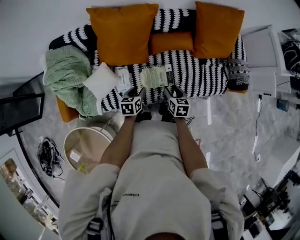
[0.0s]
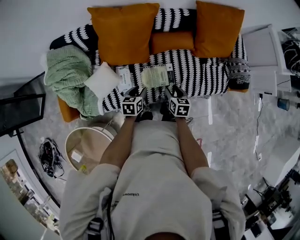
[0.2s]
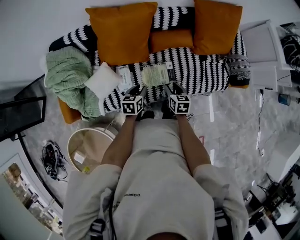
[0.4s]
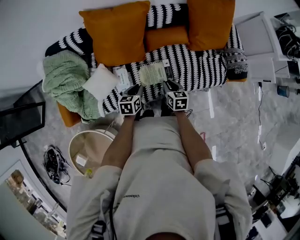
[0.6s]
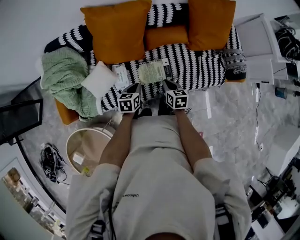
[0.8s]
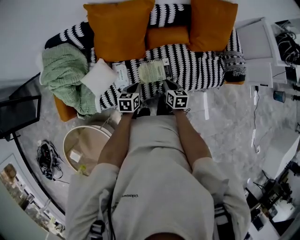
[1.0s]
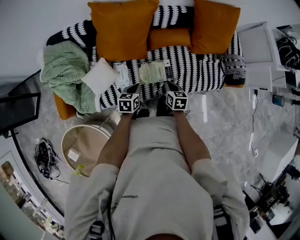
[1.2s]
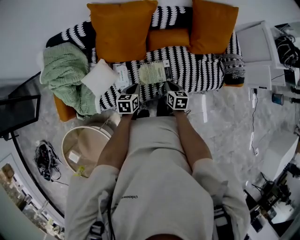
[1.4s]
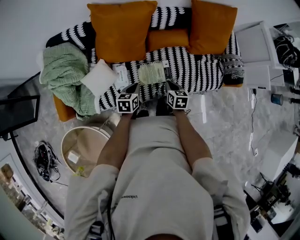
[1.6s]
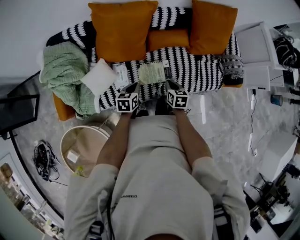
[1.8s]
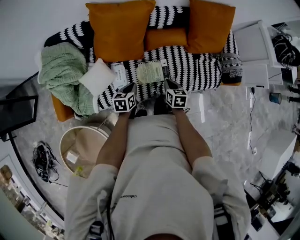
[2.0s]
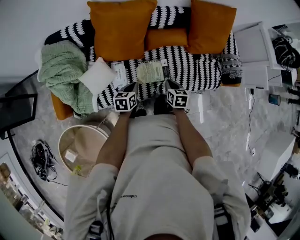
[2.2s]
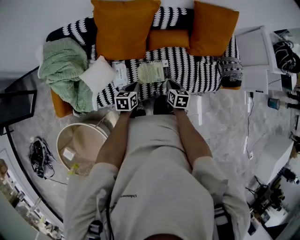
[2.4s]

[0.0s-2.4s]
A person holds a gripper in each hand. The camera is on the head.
0.0s to 1.2s: The left gripper closes. Meanwhile the right gripper closes.
1.2s to 2.4s: The grippers move only a little.

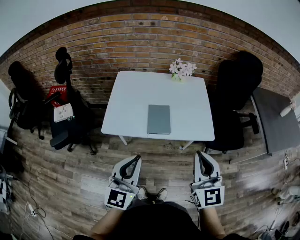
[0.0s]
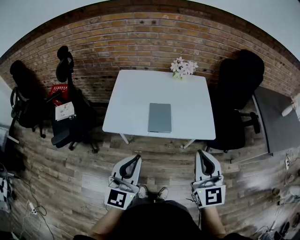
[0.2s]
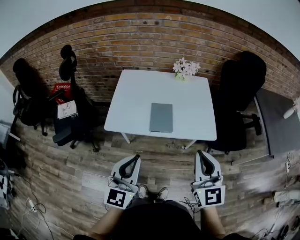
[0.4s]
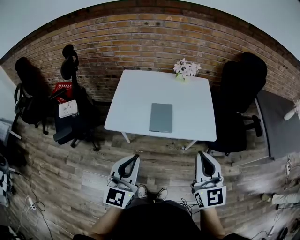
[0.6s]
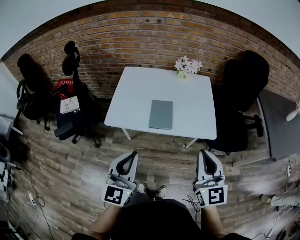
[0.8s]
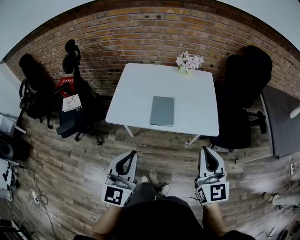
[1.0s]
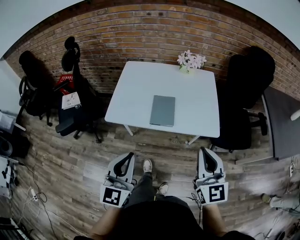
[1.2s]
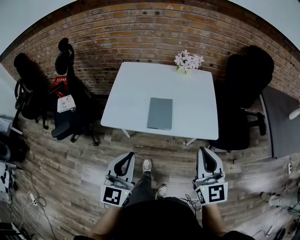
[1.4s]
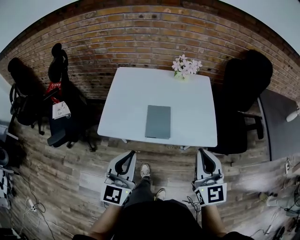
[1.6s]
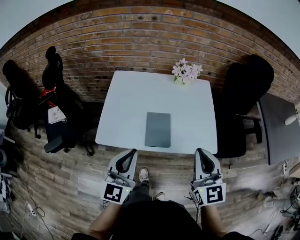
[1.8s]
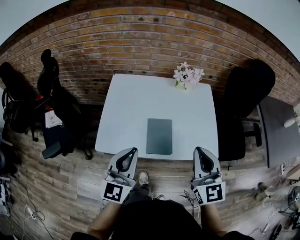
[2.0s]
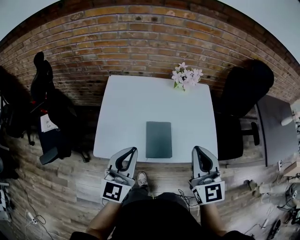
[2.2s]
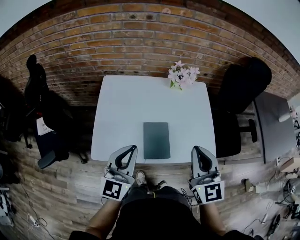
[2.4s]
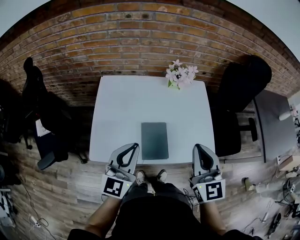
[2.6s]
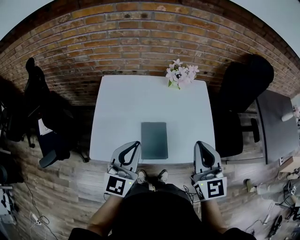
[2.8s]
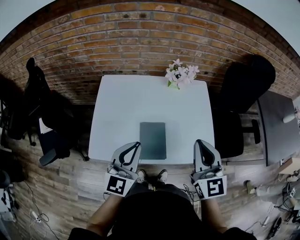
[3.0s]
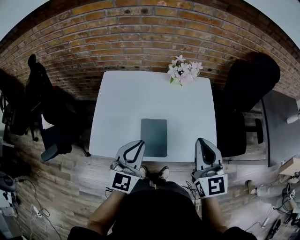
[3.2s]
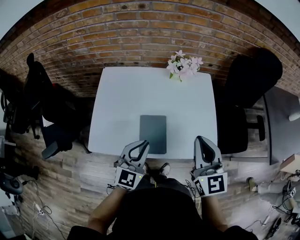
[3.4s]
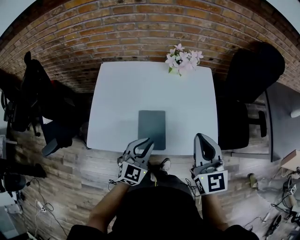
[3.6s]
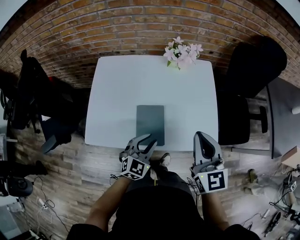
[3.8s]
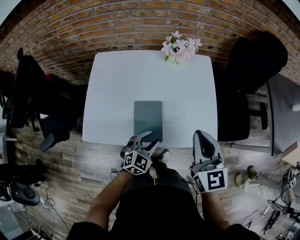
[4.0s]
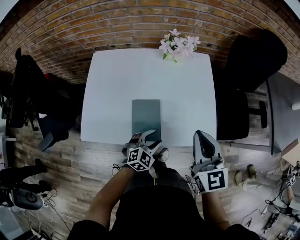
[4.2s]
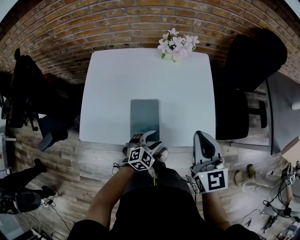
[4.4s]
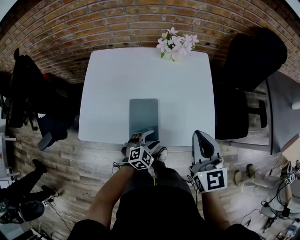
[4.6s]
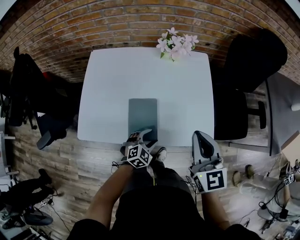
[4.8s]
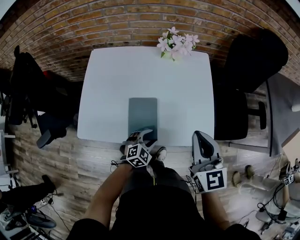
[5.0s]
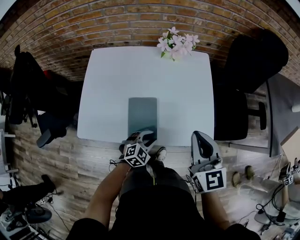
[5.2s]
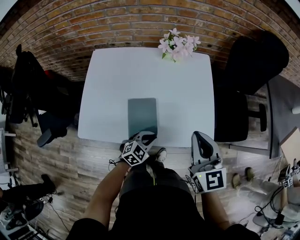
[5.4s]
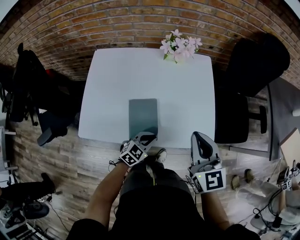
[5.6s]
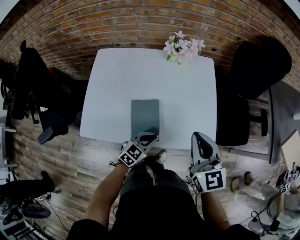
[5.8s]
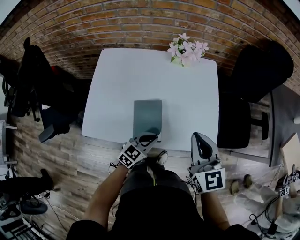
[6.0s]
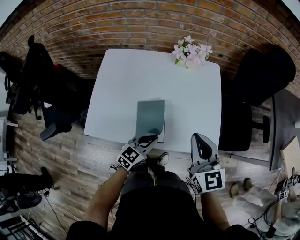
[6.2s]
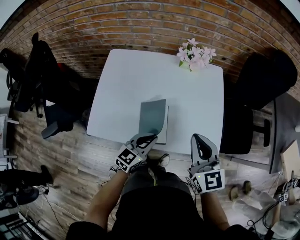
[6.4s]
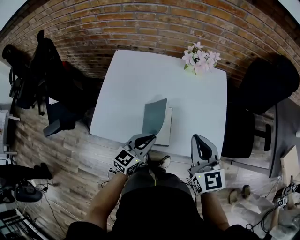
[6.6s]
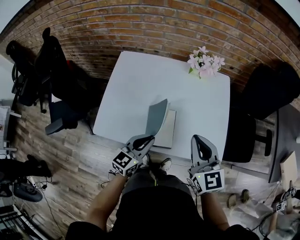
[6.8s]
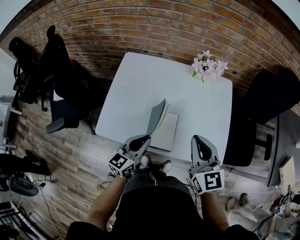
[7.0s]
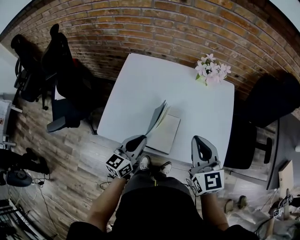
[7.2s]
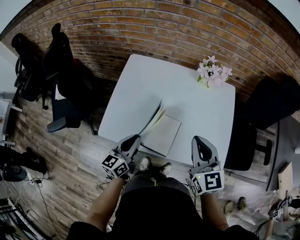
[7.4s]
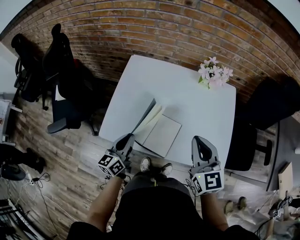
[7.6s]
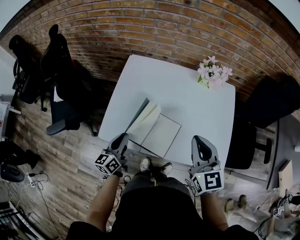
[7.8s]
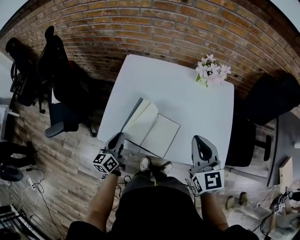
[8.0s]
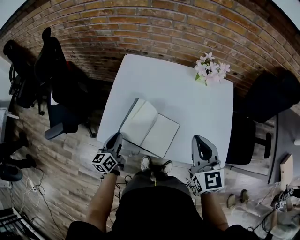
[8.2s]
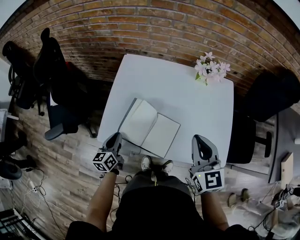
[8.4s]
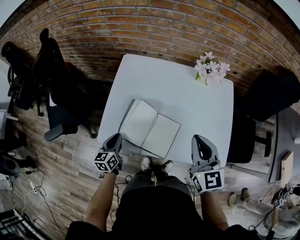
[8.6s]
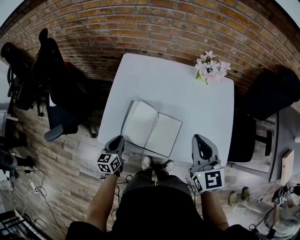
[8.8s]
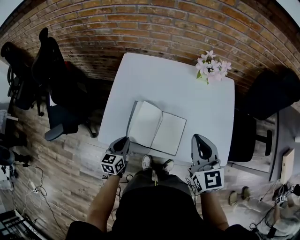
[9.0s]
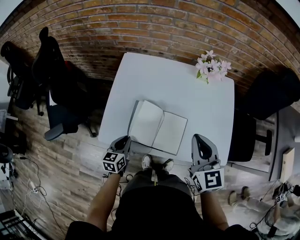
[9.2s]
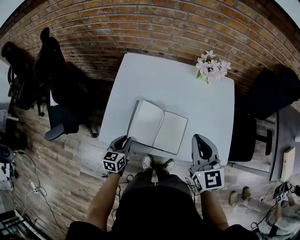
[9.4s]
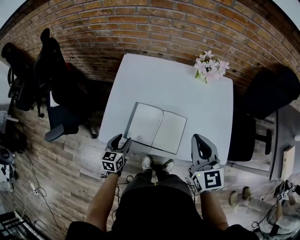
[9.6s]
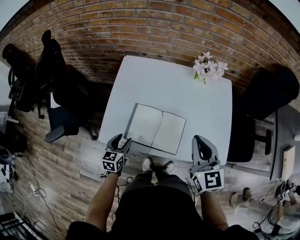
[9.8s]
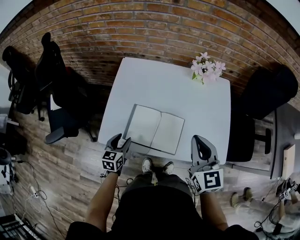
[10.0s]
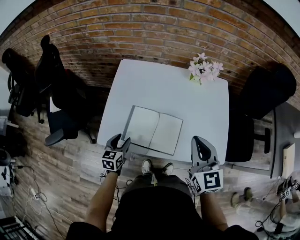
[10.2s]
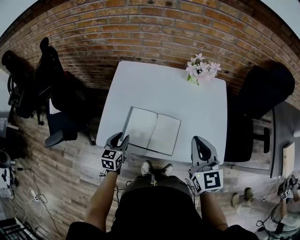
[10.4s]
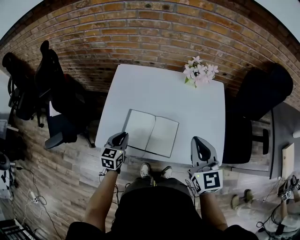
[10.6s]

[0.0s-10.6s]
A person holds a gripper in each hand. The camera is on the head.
0.0s to 1.6s: Both grippers travel together forward, some 5 cm.
1.6s to 3.0s: Both grippers travel together forward, some 20 cm.
3.0s to 4.6s: The right gripper goes approximately 10 cm downward and to the right, while the left gripper heads downward and to the right, covering some 35 cm, tips its fingers downward by roughly 40 degrees, and opens.
4.6s to 6.0s: The left gripper goes some 5 cm upward, turns by some 30 degrees, and closes.
6.0s to 7.6s: The left gripper travels to the left by some 25 cm, and changes its angle by some 50 degrees; the right gripper moves to the left, about 10 cm.
7.6s to 9.0s: The left gripper travels downward by approximately 10 cm, and rotates approximately 20 degrees.
9.0s to 10.6s: The left gripper is displaced upward by about 5 cm, and opens, then closes again; the right gripper changes place by about 5 cm.

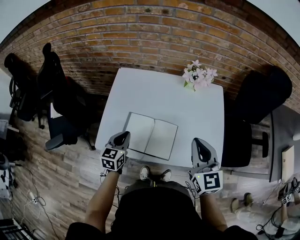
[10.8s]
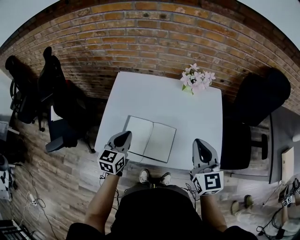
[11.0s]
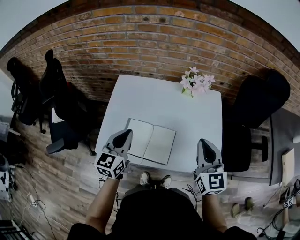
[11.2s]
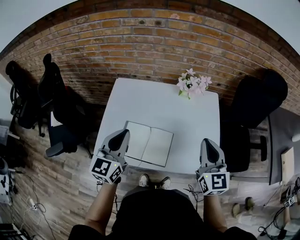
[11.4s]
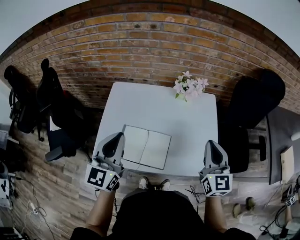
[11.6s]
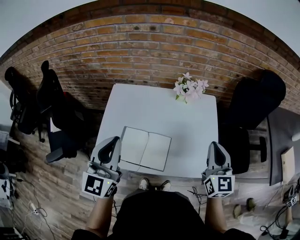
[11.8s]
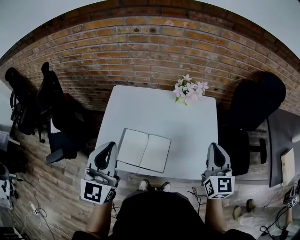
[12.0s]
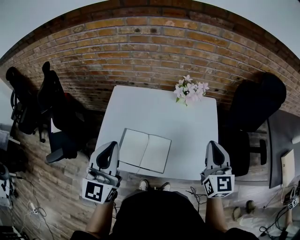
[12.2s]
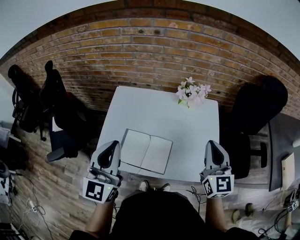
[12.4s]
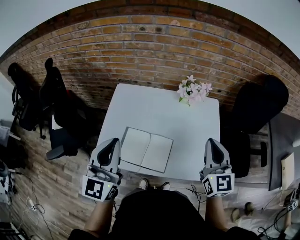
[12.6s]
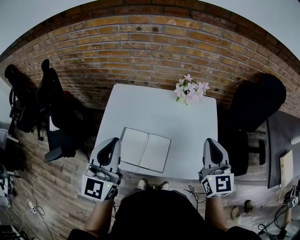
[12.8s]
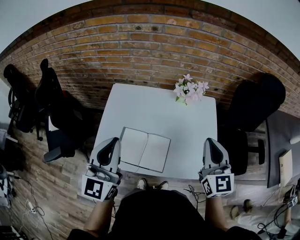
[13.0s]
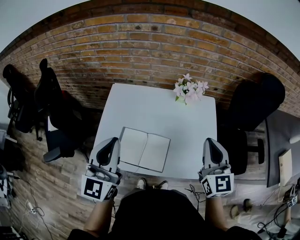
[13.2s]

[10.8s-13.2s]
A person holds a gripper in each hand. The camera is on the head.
10.8s to 12.0s: The left gripper travels upward by roughly 25 cm, and tilts its fingers roughly 30 degrees upward, while the right gripper moves to the right, some 10 cm.
12.0s to 13.2s: The right gripper shifts by about 5 cm.

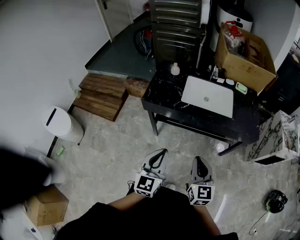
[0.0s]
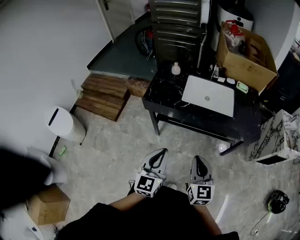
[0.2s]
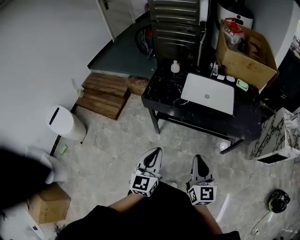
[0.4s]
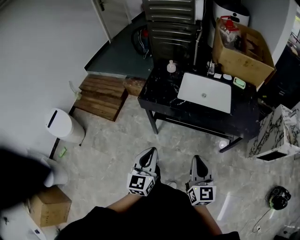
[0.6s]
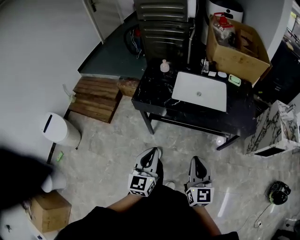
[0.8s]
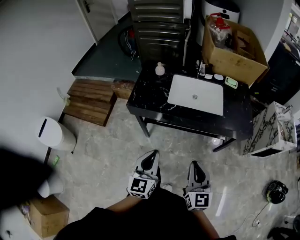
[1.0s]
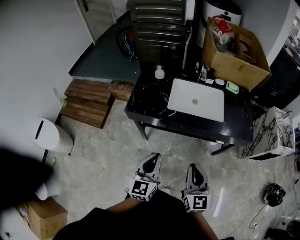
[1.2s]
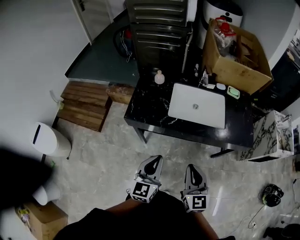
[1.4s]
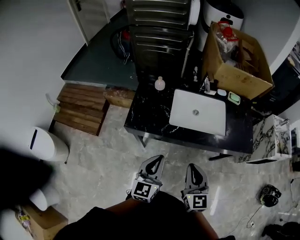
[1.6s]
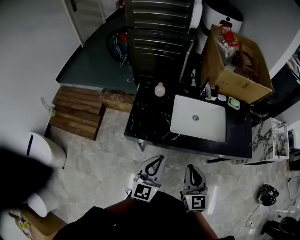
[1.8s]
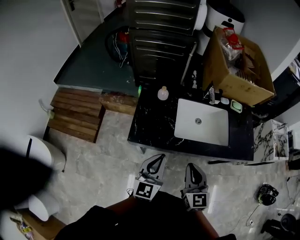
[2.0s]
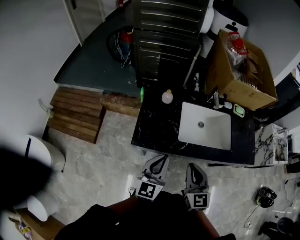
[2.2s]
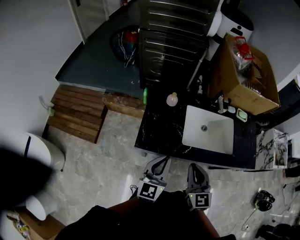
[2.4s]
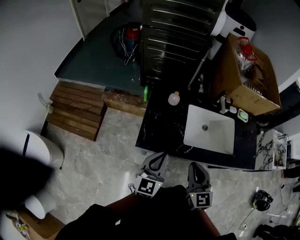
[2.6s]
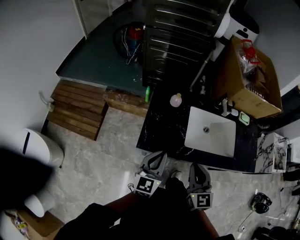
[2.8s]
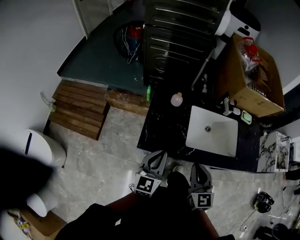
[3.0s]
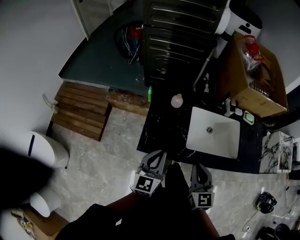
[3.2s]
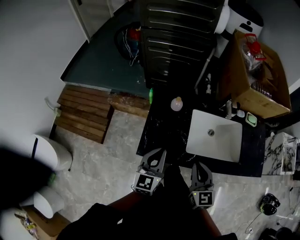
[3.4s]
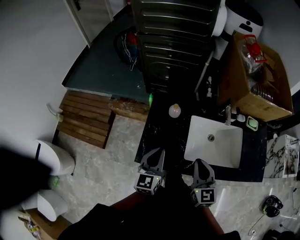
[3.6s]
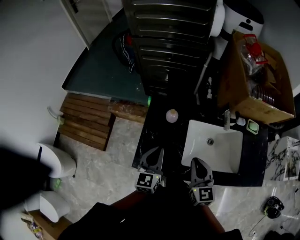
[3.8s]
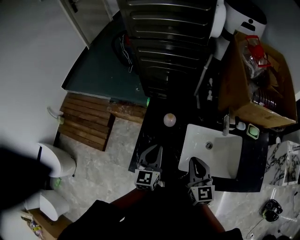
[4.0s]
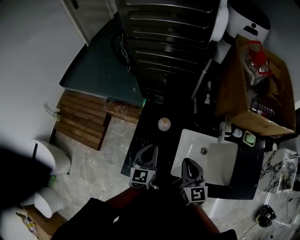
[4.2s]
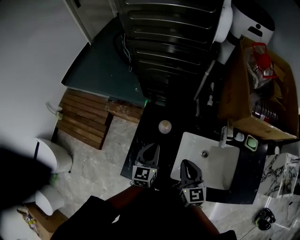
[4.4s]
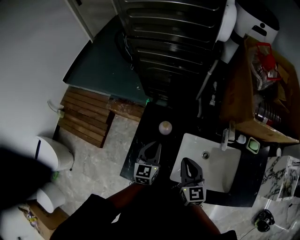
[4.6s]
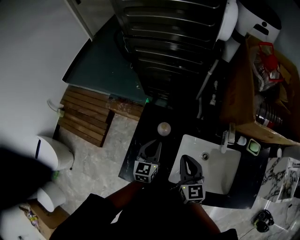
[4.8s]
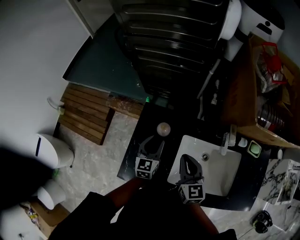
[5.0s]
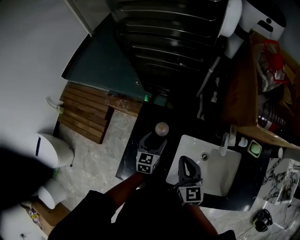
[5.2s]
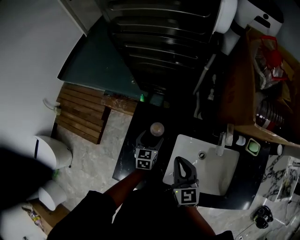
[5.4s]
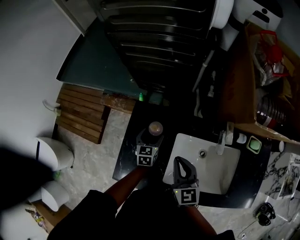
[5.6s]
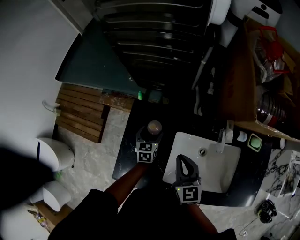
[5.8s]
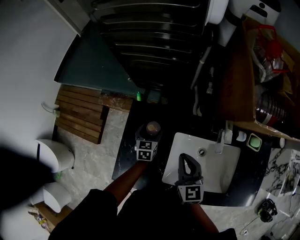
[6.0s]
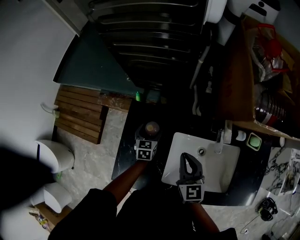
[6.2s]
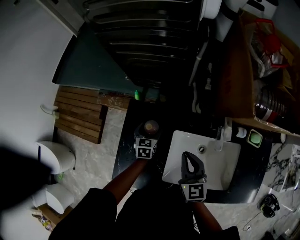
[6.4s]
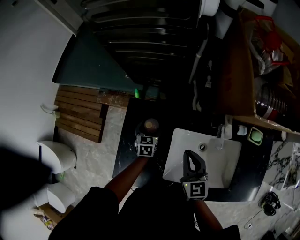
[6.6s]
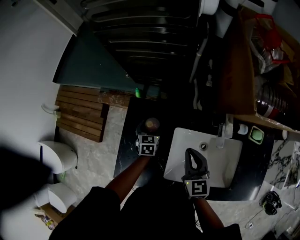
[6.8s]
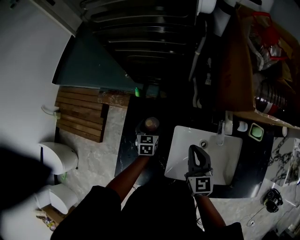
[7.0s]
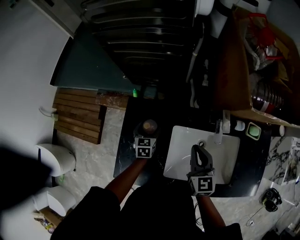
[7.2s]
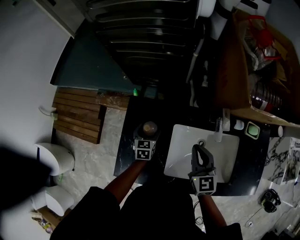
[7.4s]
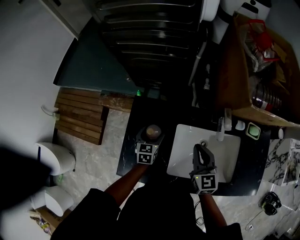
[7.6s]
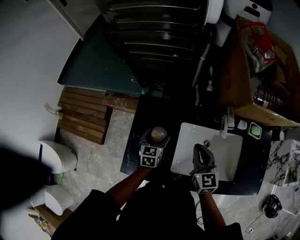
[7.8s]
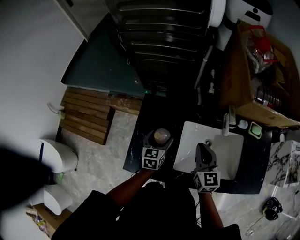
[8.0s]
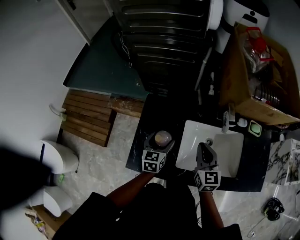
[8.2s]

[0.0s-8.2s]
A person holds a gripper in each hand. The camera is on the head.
0.0s to 1.6s: The grippers both shift forward by about 20 cm.
1.6s to 3.2s: Both grippers move forward and to the left, some 20 cm.
3.2s to 5.0s: The grippers both shift forward by roughly 25 cm.
5.0s to 6.6s: The right gripper is displaced to the right by roughly 5 cm. The left gripper travels downward and forward by some 15 cm, turns by about 20 degrees, and opens.
6.6s to 8.2s: The right gripper goes some 5 cm backward. The left gripper heads backward and upward, covering approximately 20 cm.
